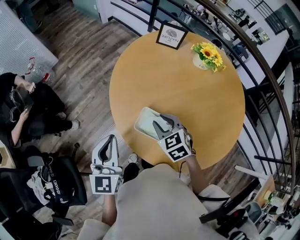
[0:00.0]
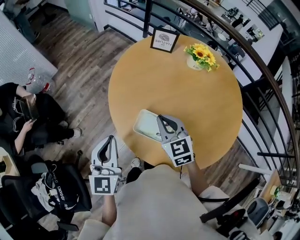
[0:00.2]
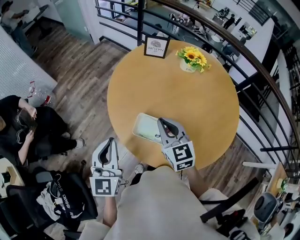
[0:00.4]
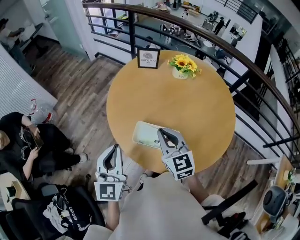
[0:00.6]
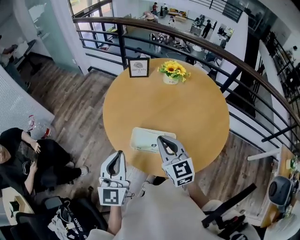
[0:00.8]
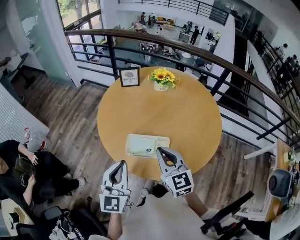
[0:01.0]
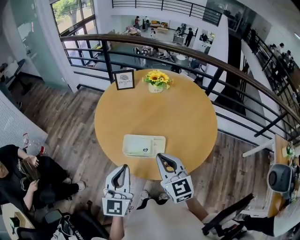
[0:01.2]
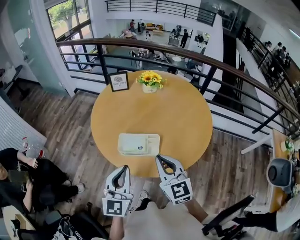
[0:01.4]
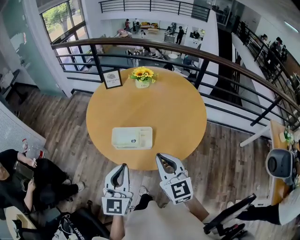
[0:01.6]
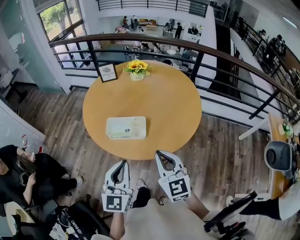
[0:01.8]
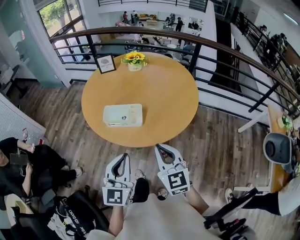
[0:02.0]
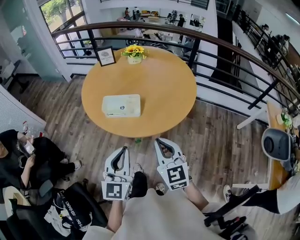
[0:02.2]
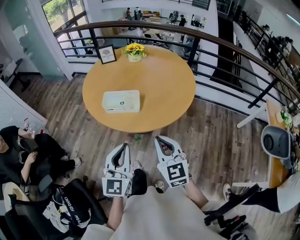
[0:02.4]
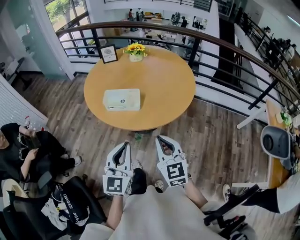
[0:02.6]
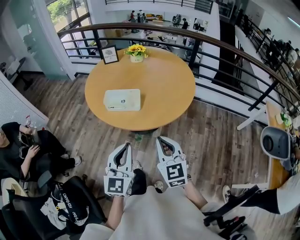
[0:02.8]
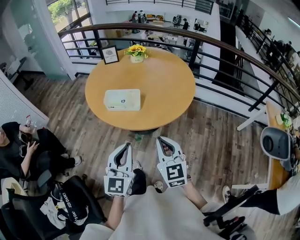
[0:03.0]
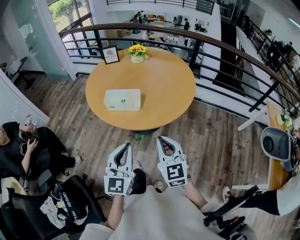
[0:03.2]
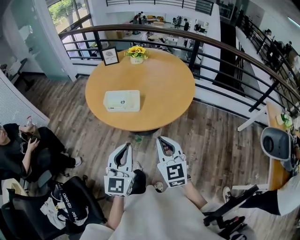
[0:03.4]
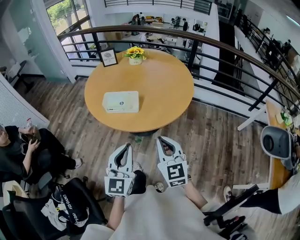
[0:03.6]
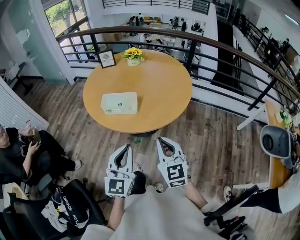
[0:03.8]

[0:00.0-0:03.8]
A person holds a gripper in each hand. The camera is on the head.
0.0 to 1.2 s: The left gripper changes place by some 10 cm, and turns by roughly 30 degrees. Meanwhile the right gripper travels upward by approximately 15 cm, points its fingers some 40 degrees further upward, and closes up.
1.2 to 2.6 s: Both grippers travel together backward and to the right, approximately 20 cm.
2.6 to 3.8 s: The grippers stay close to where they were, moving slightly.

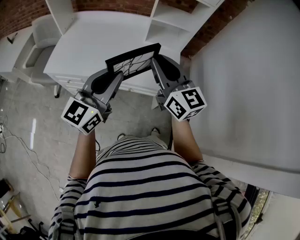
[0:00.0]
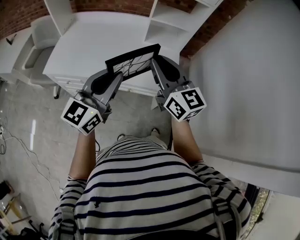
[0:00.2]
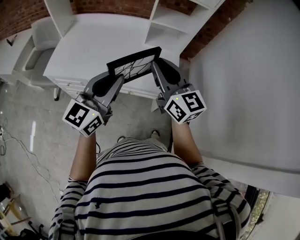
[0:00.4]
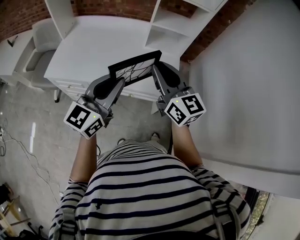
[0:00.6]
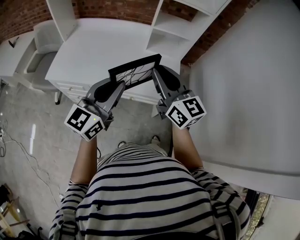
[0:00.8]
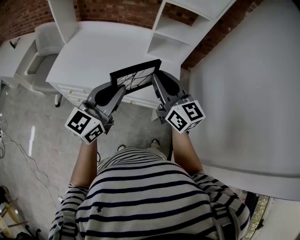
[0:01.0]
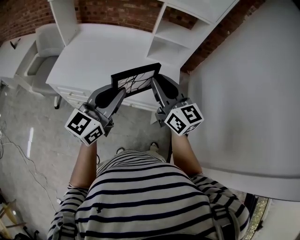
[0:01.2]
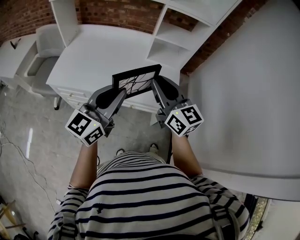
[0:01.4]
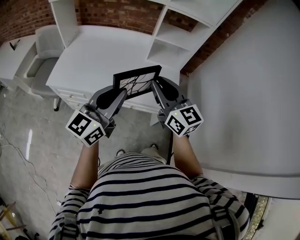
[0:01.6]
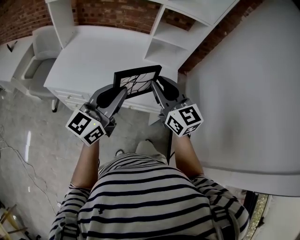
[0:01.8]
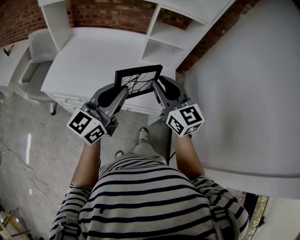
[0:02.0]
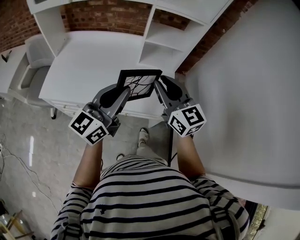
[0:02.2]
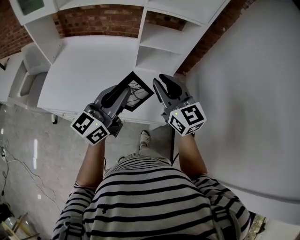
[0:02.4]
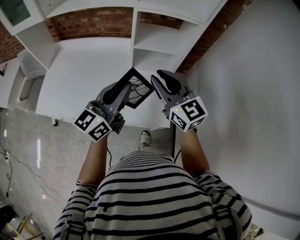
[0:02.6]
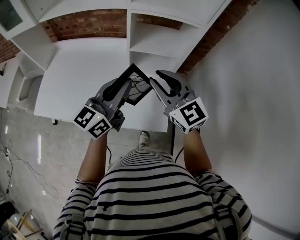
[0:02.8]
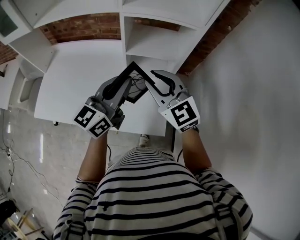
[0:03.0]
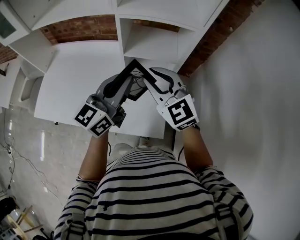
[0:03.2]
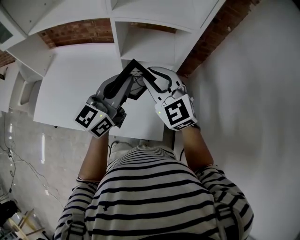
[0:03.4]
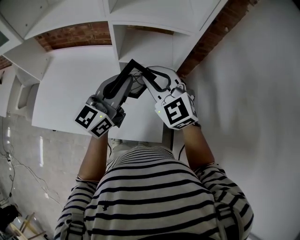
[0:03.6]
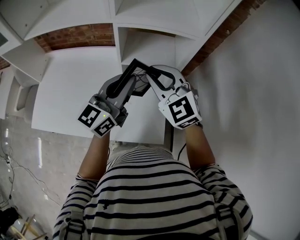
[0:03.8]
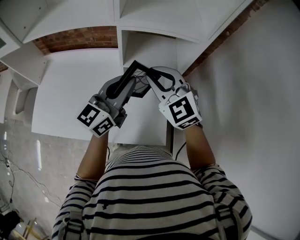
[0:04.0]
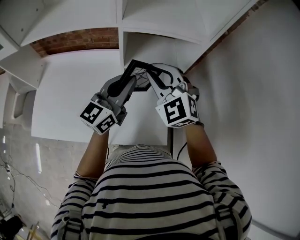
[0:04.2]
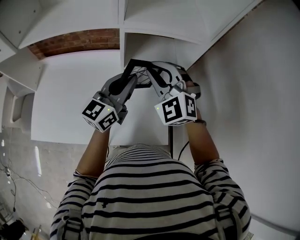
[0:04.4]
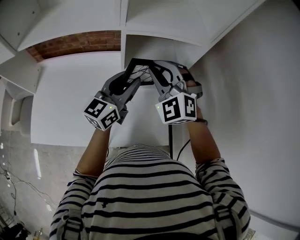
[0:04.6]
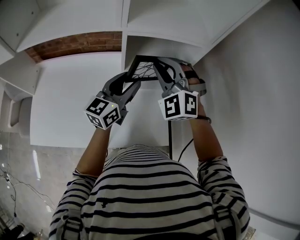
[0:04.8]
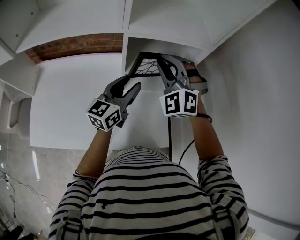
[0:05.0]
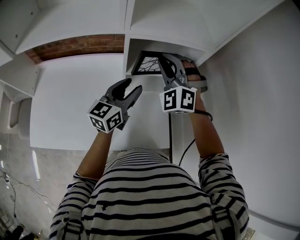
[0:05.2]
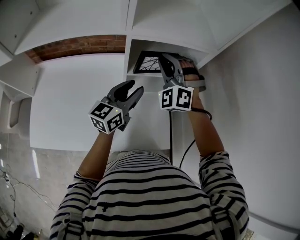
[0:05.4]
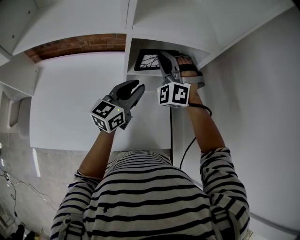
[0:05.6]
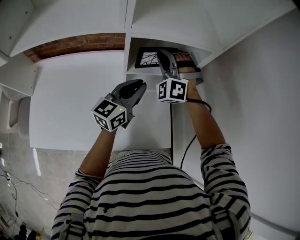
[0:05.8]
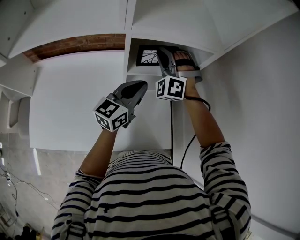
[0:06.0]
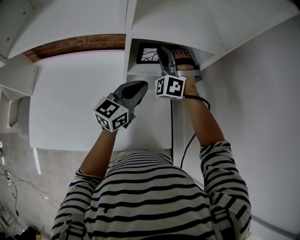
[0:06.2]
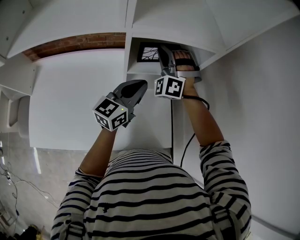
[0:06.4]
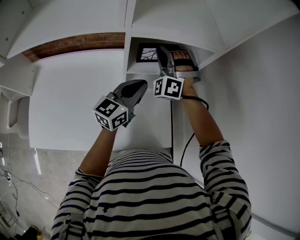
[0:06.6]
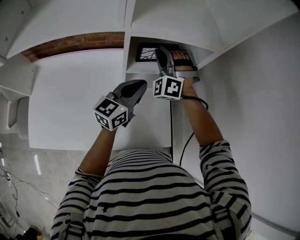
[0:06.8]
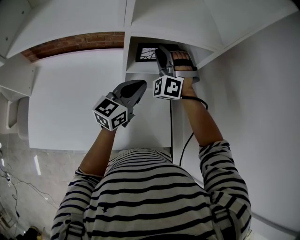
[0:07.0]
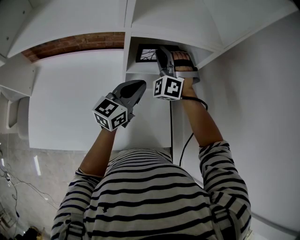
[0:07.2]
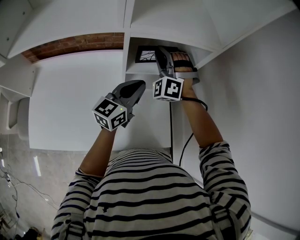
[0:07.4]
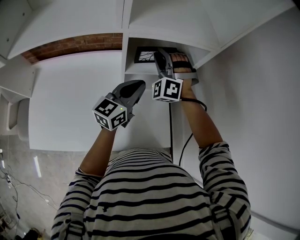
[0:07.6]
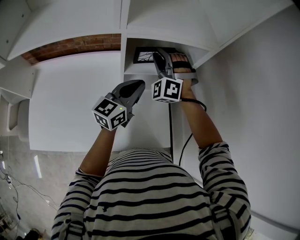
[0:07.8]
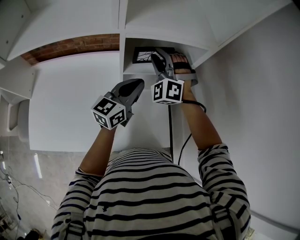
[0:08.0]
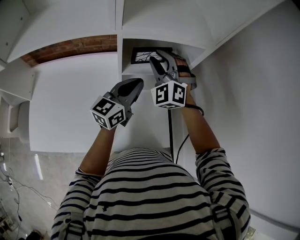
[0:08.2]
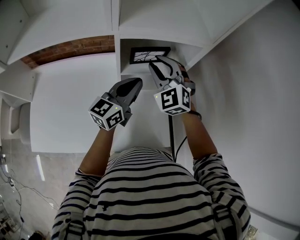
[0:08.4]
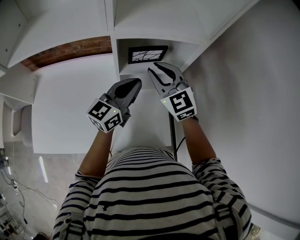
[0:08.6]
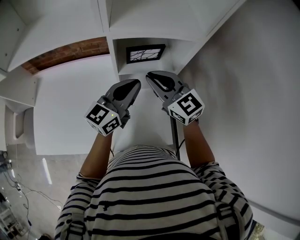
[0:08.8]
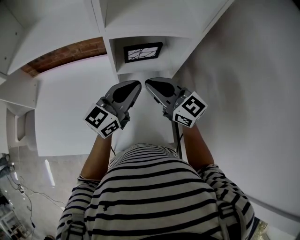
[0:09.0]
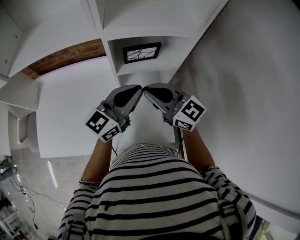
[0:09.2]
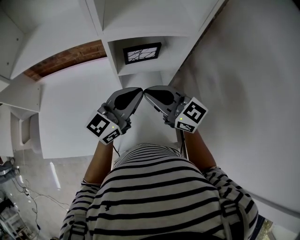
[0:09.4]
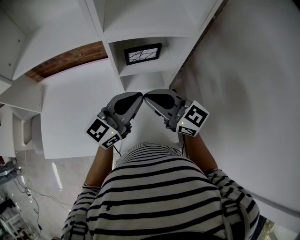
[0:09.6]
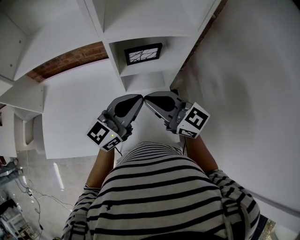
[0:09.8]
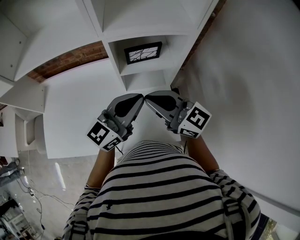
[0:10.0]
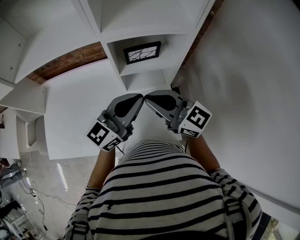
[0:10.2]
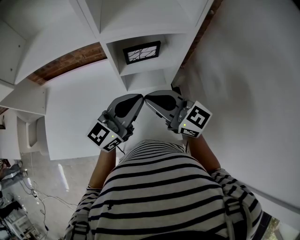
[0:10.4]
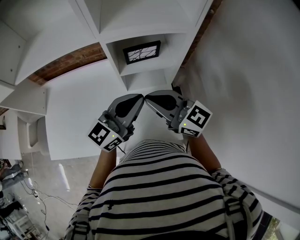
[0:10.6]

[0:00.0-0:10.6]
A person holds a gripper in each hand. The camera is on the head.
0.0 to 1.6 s: The grippers move only a little.
1.6 to 3.0 s: Both grippers move forward and to the right, some 25 cm. The right gripper rotates roughly 30 degrees.
3.0 to 4.6 s: The grippers both shift forward by about 10 cm. The left gripper opens its fingers, while the right gripper rotates about 40 degrees.
4.6 to 6.0 s: The right gripper is displaced forward and downward by approximately 15 cm, and rotates some 30 degrees; the left gripper travels downward by approximately 5 cm, and closes its fingers.
6.0 to 7.6 s: Both grippers stay about where they are.
7.6 to 9.0 s: The left gripper goes some 5 cm upward, while the right gripper heads backward, covering approximately 15 cm, and rolls clockwise, seen from behind, by about 80 degrees.
9.0 to 10.6 s: Both grippers move backward, some 5 cm.

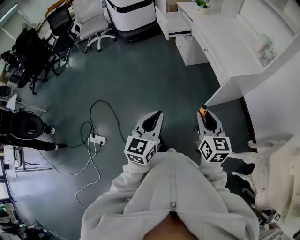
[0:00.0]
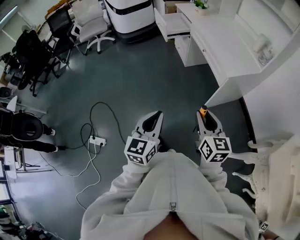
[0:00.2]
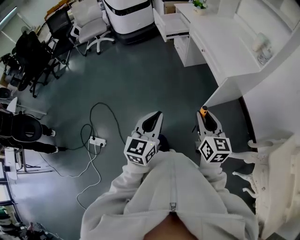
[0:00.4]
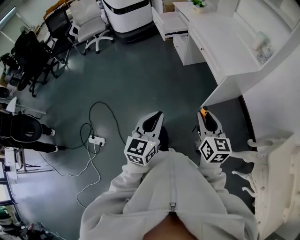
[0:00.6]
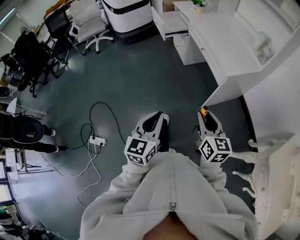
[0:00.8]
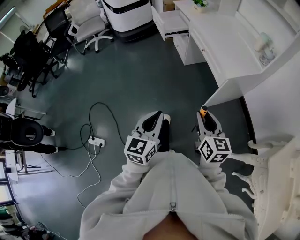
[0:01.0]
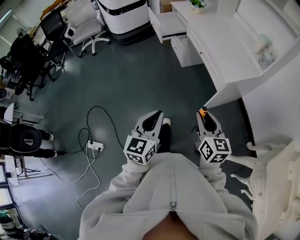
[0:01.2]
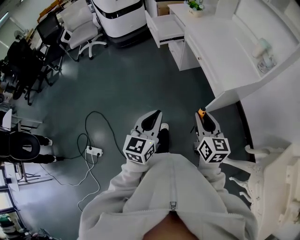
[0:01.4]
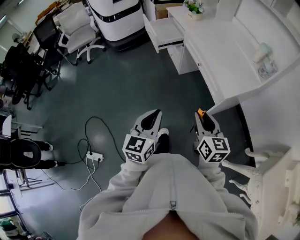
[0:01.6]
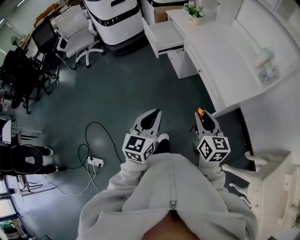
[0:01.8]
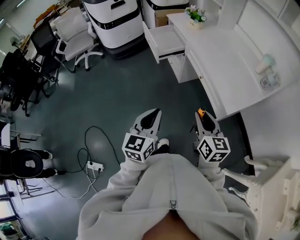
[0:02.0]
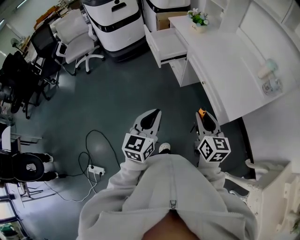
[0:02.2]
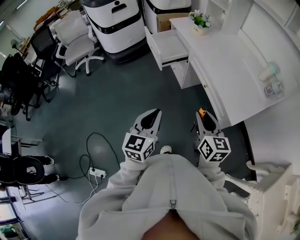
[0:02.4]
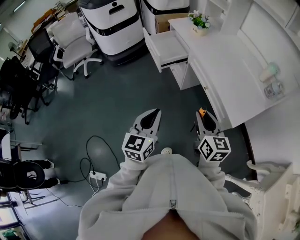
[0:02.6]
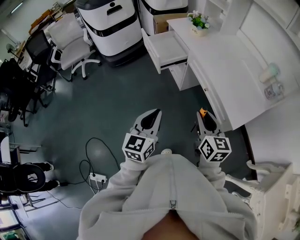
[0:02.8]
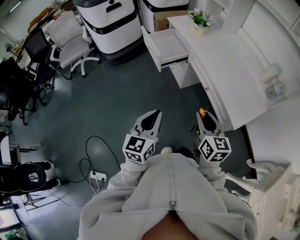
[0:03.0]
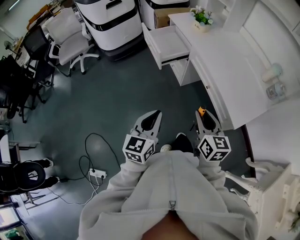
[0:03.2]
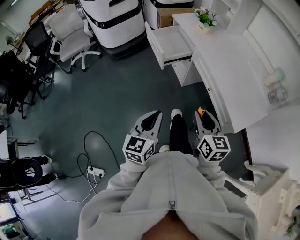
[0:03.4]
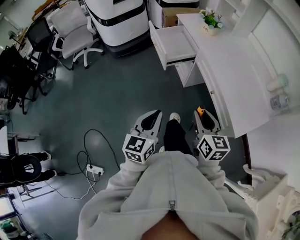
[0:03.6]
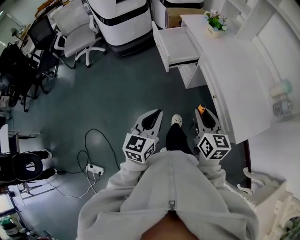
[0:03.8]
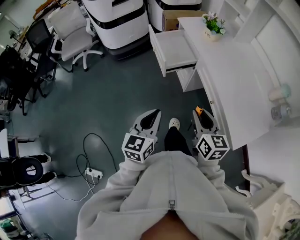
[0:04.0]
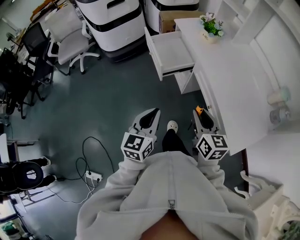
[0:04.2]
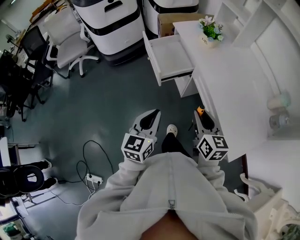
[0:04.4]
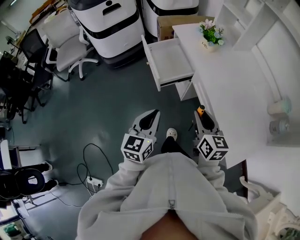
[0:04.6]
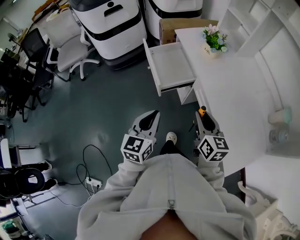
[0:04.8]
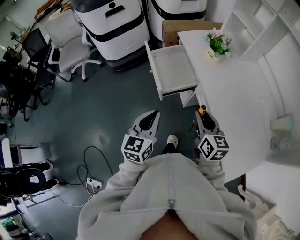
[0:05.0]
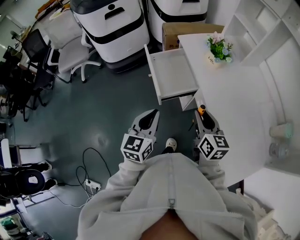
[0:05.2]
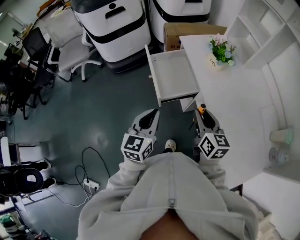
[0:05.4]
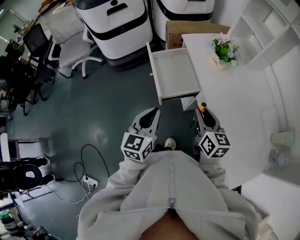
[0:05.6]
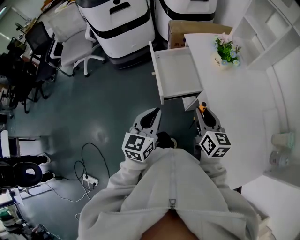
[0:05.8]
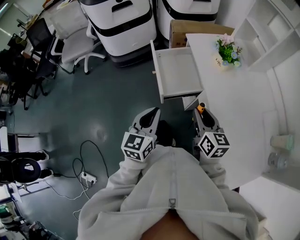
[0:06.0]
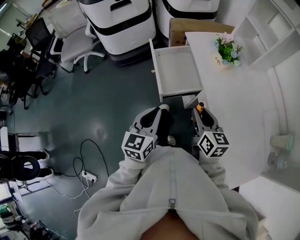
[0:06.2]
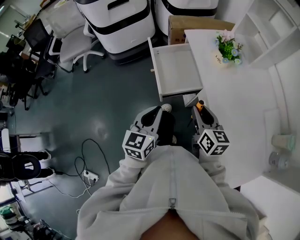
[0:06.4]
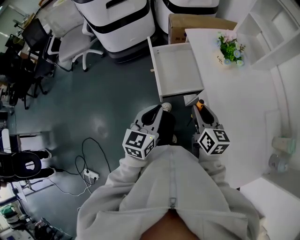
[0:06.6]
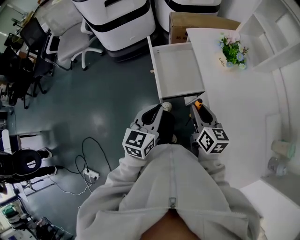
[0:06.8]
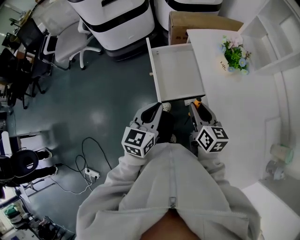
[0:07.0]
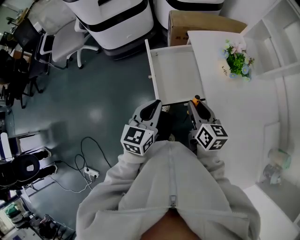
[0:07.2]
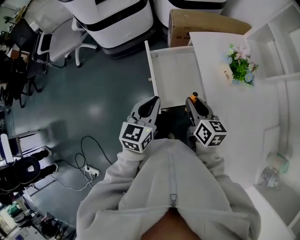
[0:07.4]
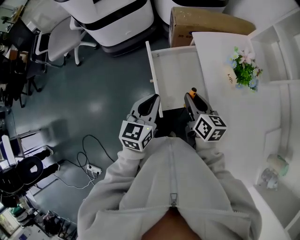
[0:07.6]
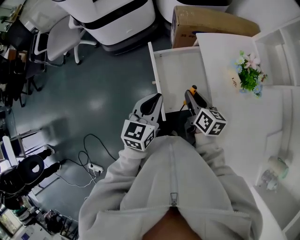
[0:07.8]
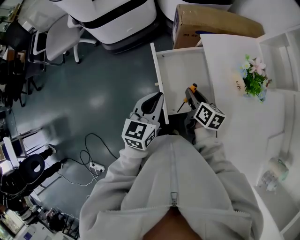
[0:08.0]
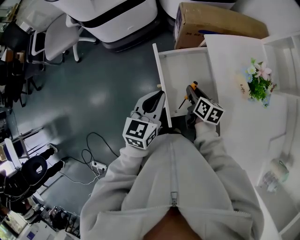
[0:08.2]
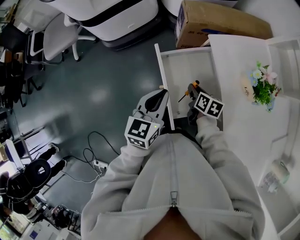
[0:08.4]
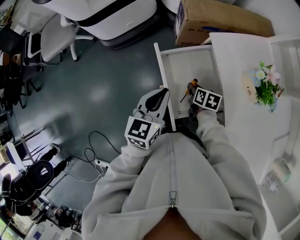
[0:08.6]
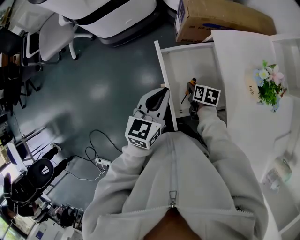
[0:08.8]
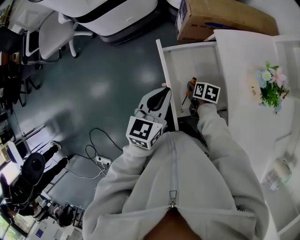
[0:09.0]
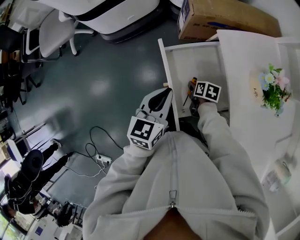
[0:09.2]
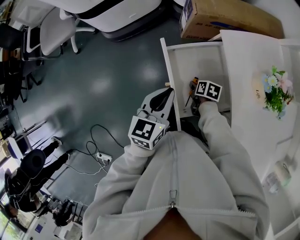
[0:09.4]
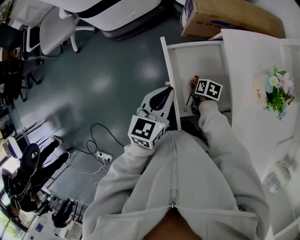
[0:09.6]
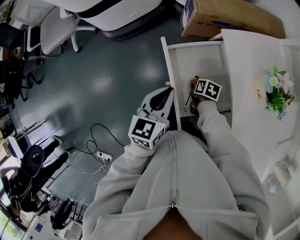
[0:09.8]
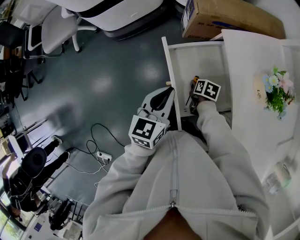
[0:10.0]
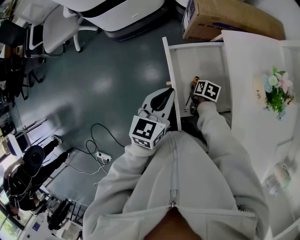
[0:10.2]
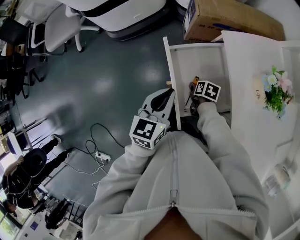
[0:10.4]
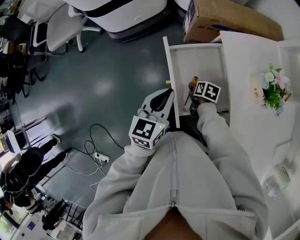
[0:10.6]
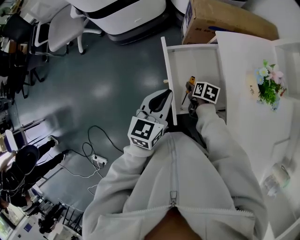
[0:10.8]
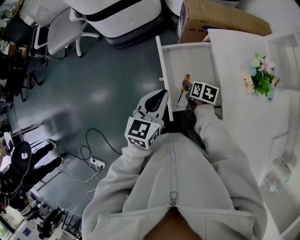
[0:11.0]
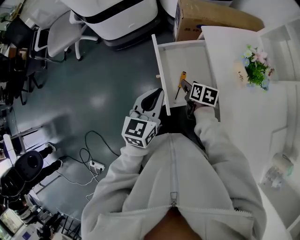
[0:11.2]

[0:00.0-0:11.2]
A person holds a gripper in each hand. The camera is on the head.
0.0 to 1.6 s: Both grippers travel together forward, roughly 15 cm.
1.6 to 3.2 s: The right gripper goes some 20 cm forward, while the left gripper moves forward and to the left, some 20 cm.
3.2 to 4.8 s: The two grippers go some 25 cm forward.
4.8 to 6.4 s: The two grippers go some 10 cm forward.
6.4 to 8.0 s: The right gripper moves forward and downward, about 25 cm, and swivels about 30 degrees. Meanwhile the left gripper goes approximately 20 cm forward.
8.0 to 9.6 s: The left gripper changes place by roughly 5 cm. Meanwhile the right gripper goes some 20 cm downward, and swivels approximately 30 degrees.
9.6 to 11.2 s: The left gripper goes roughly 10 cm backward and upward; the right gripper heads upward, covering roughly 15 cm, and opens up.
